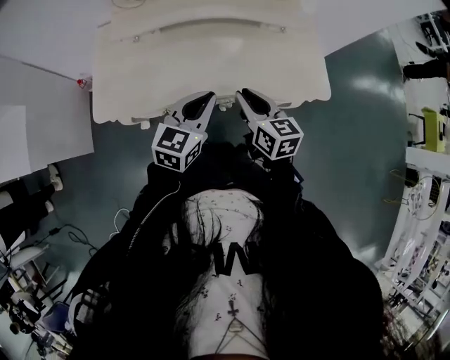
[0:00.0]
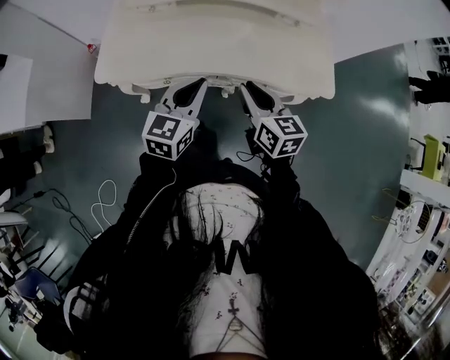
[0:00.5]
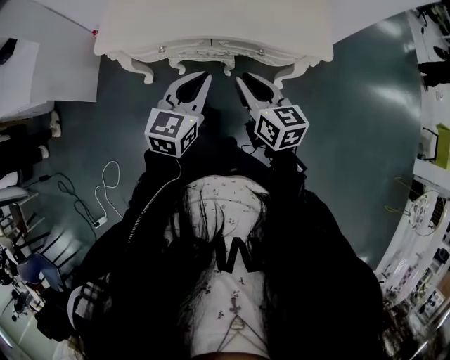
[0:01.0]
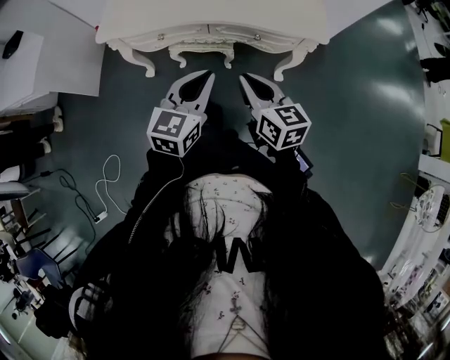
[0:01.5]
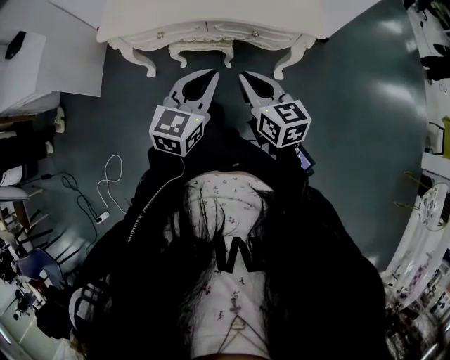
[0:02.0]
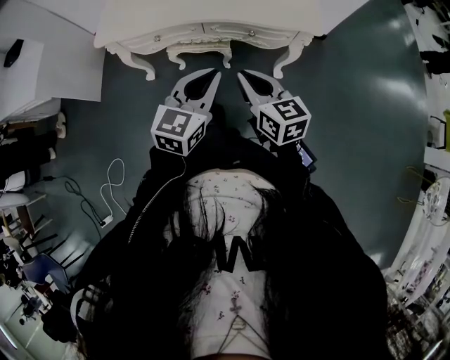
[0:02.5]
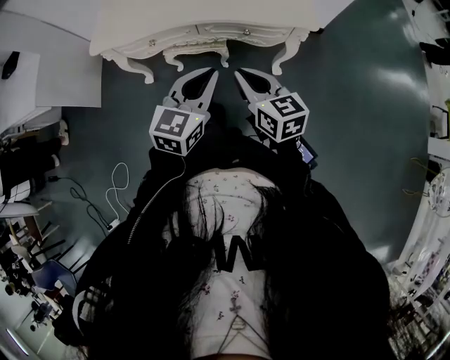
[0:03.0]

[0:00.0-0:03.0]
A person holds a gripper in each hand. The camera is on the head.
0:00.0 to 0:01.5: Both grippers move backward, approximately 25 cm.
0:01.5 to 0:03.0: The grippers move only a little.

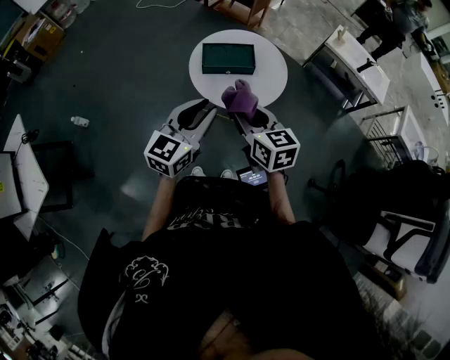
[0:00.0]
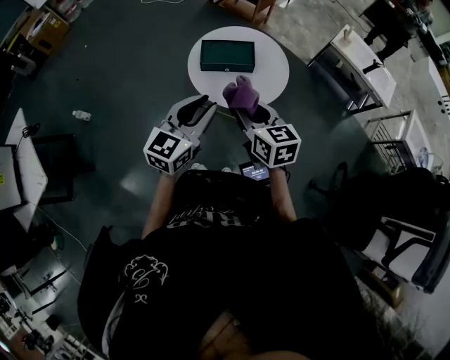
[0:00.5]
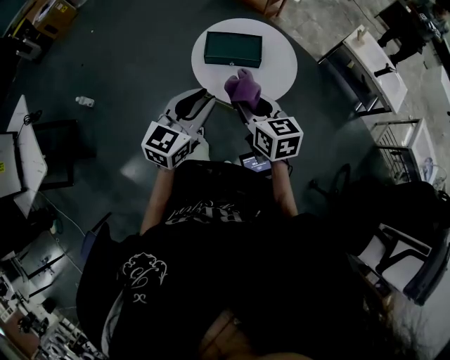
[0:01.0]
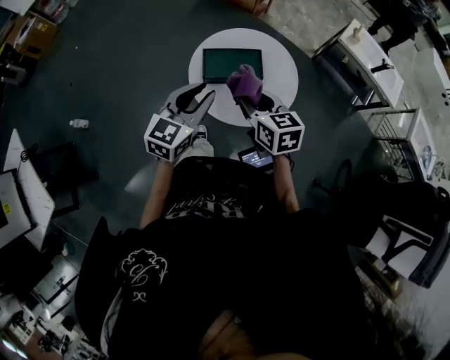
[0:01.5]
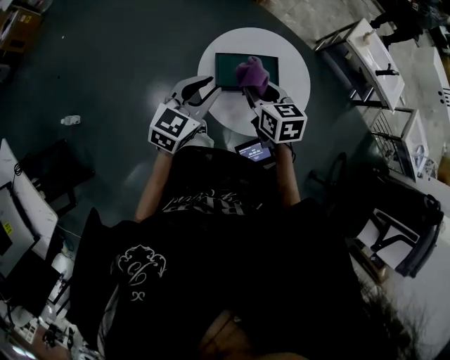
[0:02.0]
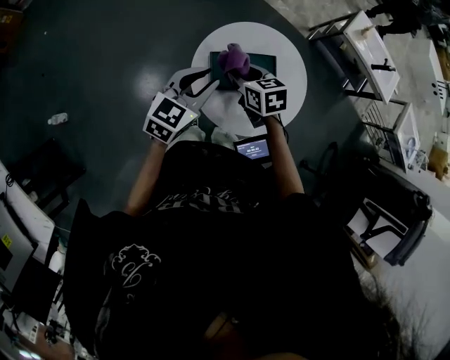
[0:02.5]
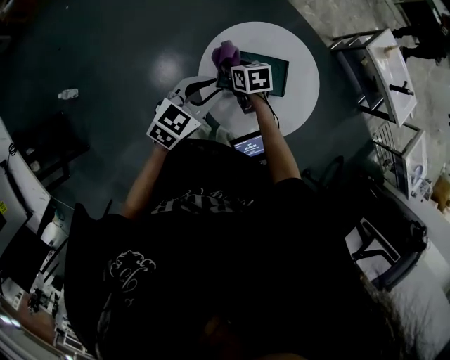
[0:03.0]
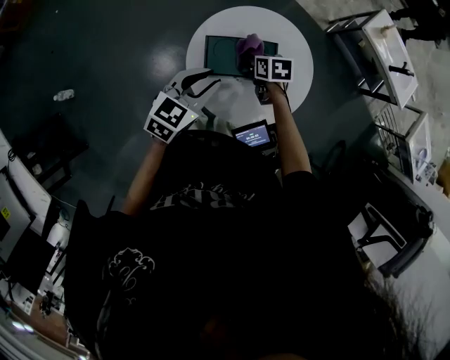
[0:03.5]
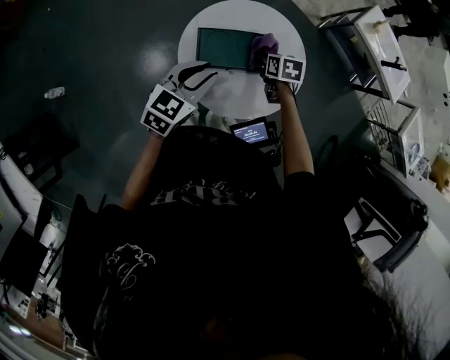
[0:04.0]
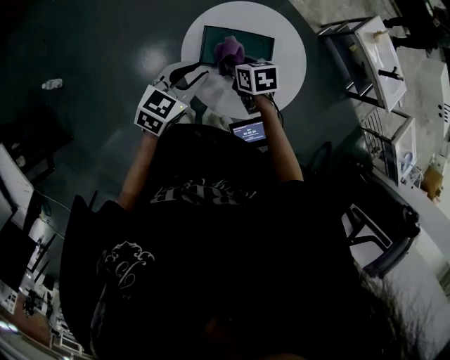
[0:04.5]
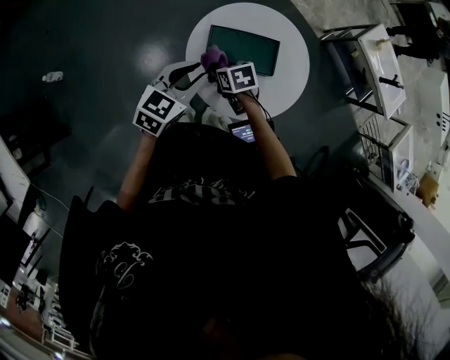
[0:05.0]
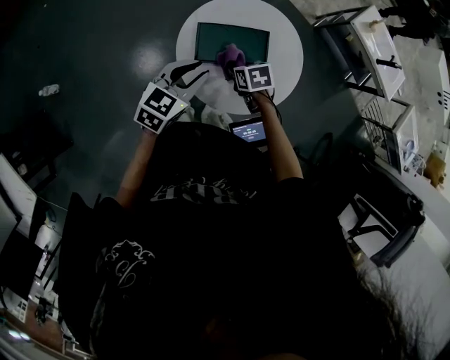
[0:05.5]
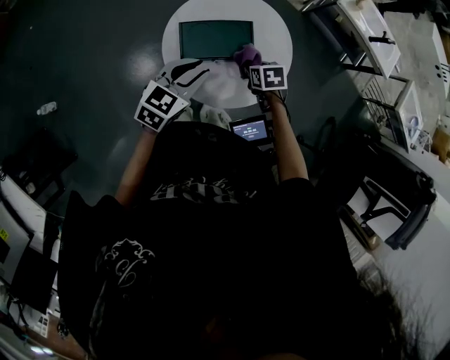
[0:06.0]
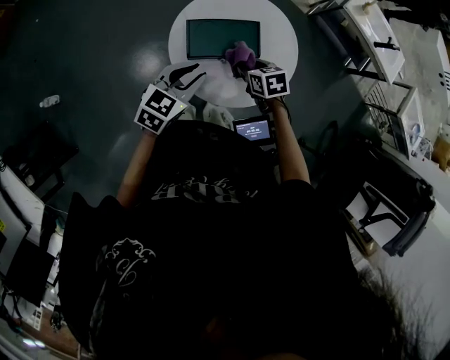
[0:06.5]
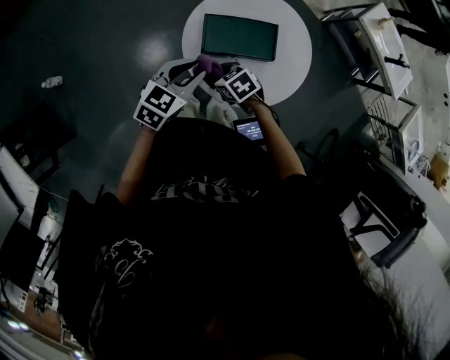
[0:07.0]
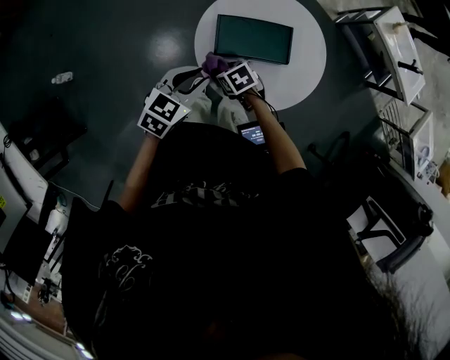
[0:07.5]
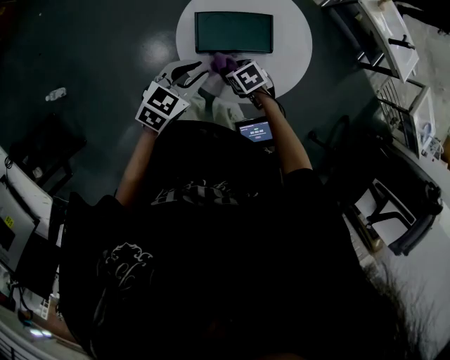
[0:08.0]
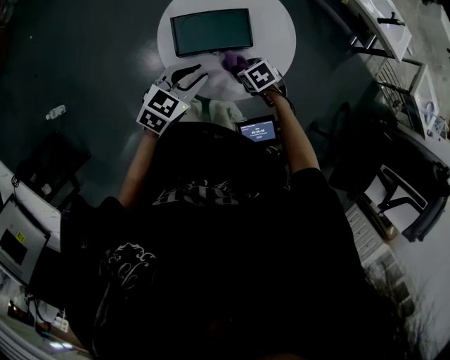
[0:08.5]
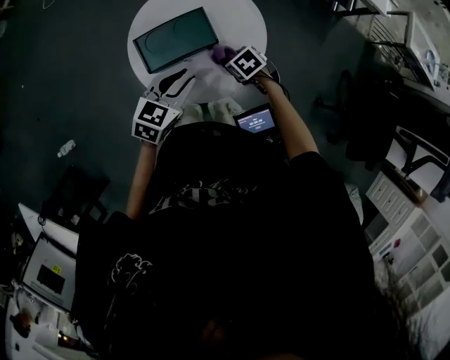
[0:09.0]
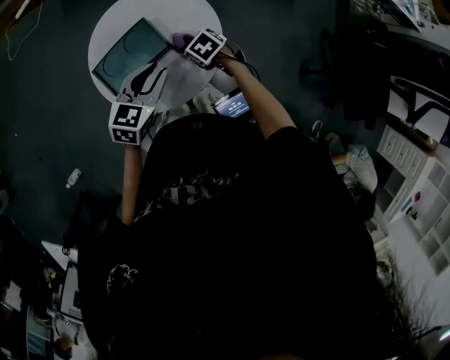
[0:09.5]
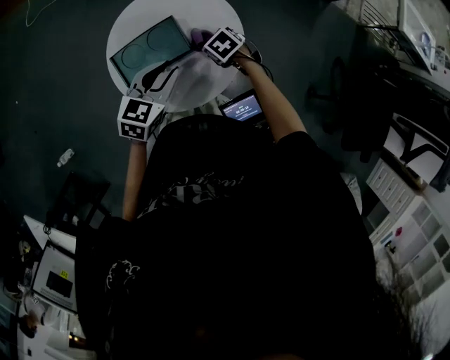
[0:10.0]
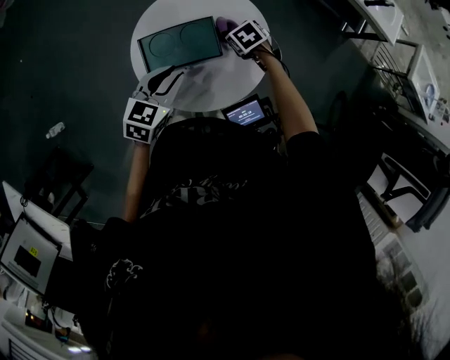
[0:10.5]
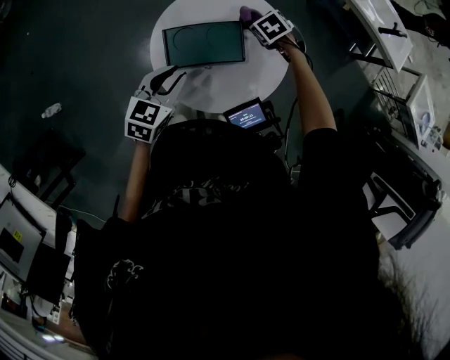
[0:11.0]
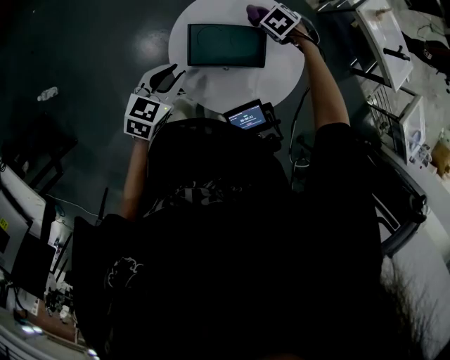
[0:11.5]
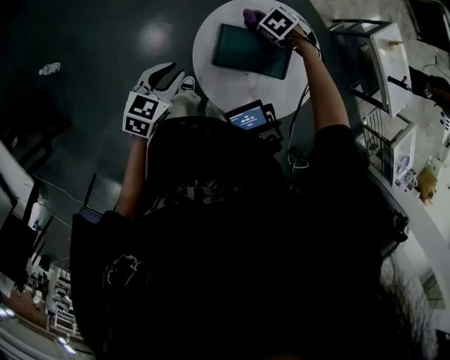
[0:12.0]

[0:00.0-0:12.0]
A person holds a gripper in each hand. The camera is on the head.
0:00.0 to 0:02.0: The grippers both shift forward by roughly 25 cm.
0:02.0 to 0:04.0: The left gripper is displaced downward and to the right by about 10 cm; the right gripper shifts some 25 cm downward, to the right and forward, and changes its angle by approximately 30 degrees.
0:04.0 to 0:06.0: The right gripper goes roughly 10 cm backward, and travels to the left and back again, approximately 15 cm each way.
0:06.0 to 0:08.0: The right gripper changes place by roughly 15 cm, and turns by some 30 degrees.
0:08.0 to 0:10.0: The right gripper heads to the right and forward, covering some 20 cm; the left gripper moves to the right, some 15 cm.
0:10.0 to 0:12.0: The left gripper shifts by approximately 25 cm, and turns by some 30 degrees, while the right gripper ends up about 25 cm from where it was, and rotates around the line of its fingers by about 40 degrees, counterclockwise from behind.

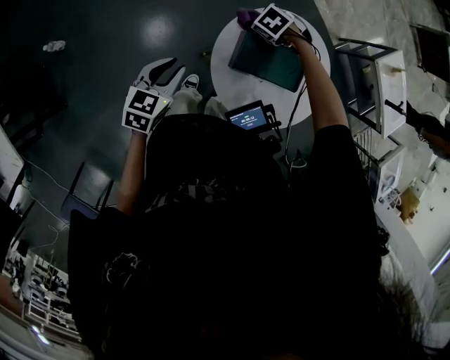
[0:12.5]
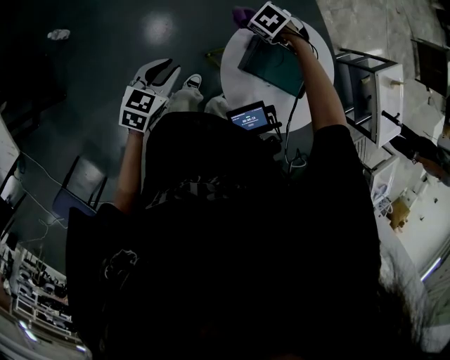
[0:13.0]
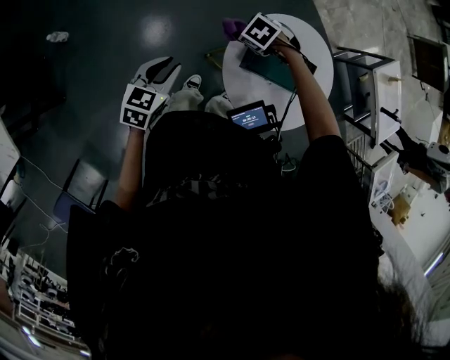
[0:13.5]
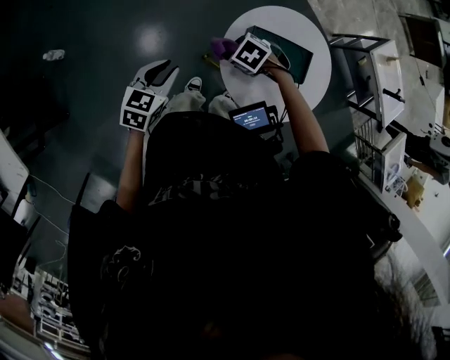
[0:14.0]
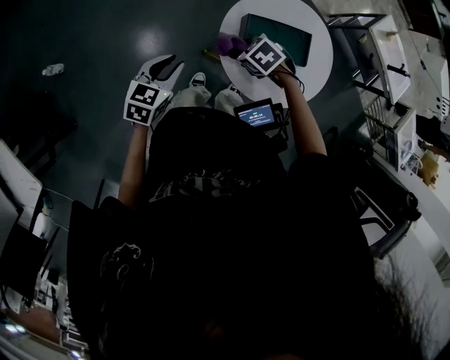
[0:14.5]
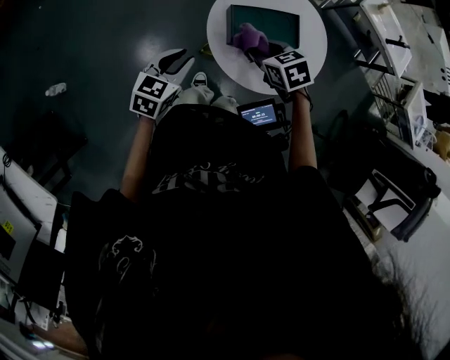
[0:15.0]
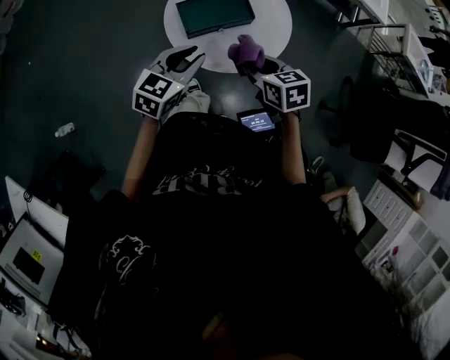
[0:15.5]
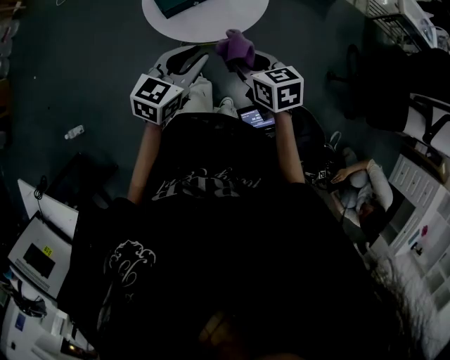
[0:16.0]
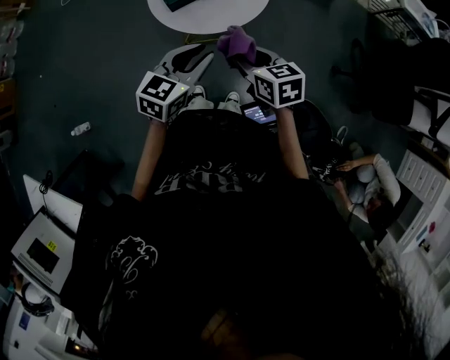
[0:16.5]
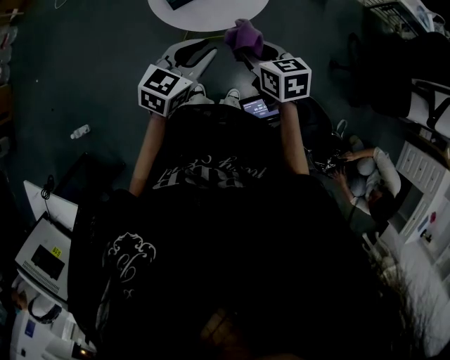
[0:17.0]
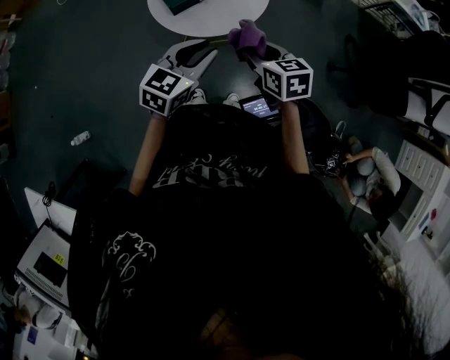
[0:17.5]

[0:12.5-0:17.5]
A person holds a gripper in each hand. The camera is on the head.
0:12.5 to 0:15.0: The left gripper swivels roughly 20 degrees. The right gripper shifts by approximately 20 cm, and rotates around the line of its fingers by about 40 degrees, clockwise from behind.
0:15.0 to 0:17.5: The right gripper changes place by roughly 30 cm, and turns by roughly 40 degrees, while the left gripper shifts by roughly 30 cm, and rotates about 30 degrees.

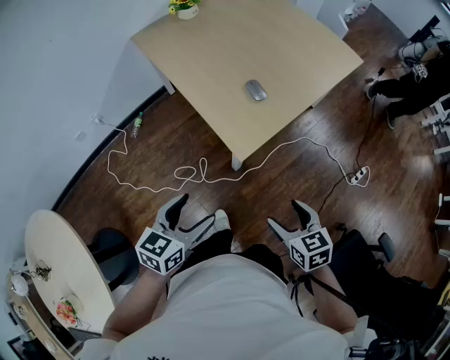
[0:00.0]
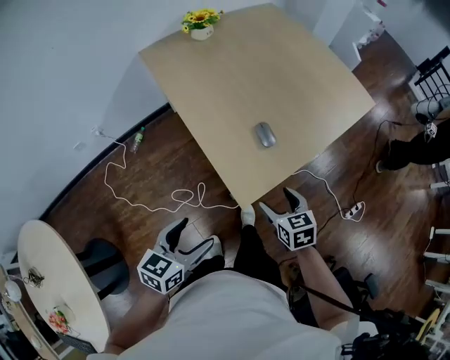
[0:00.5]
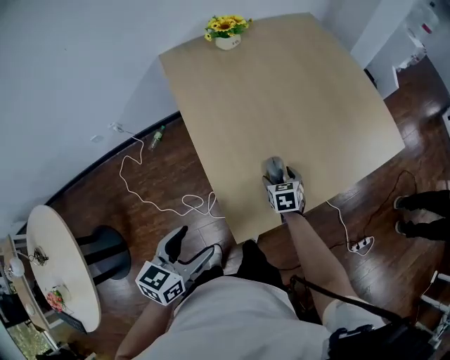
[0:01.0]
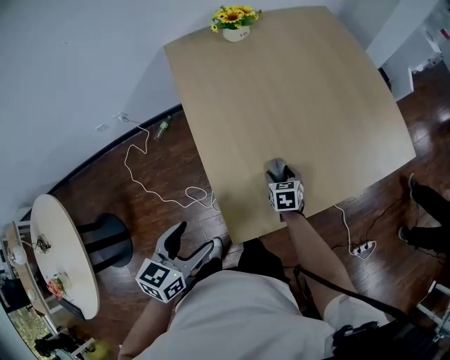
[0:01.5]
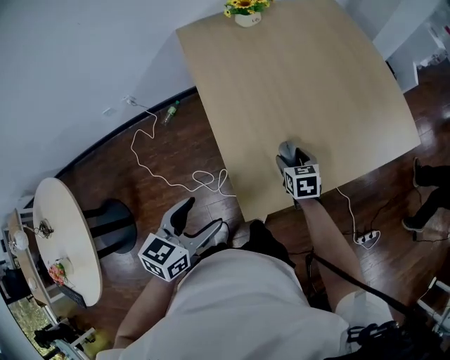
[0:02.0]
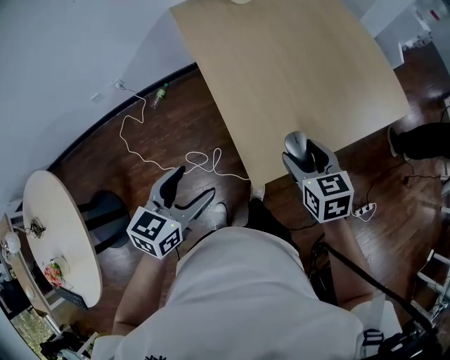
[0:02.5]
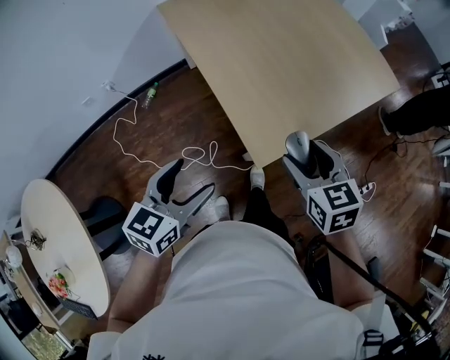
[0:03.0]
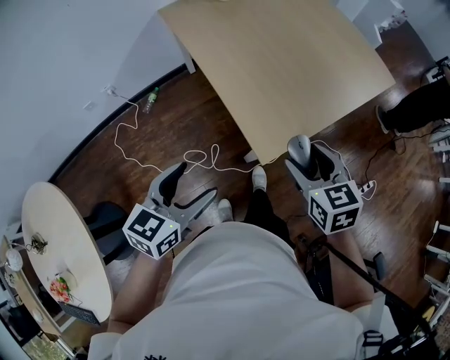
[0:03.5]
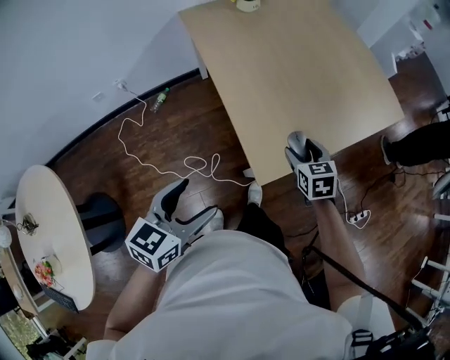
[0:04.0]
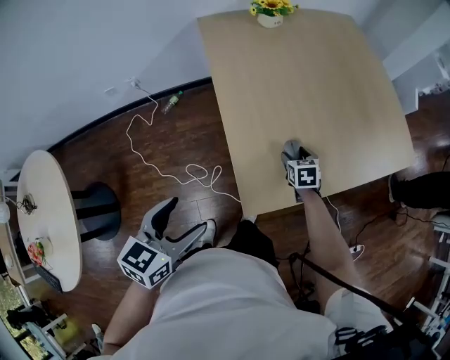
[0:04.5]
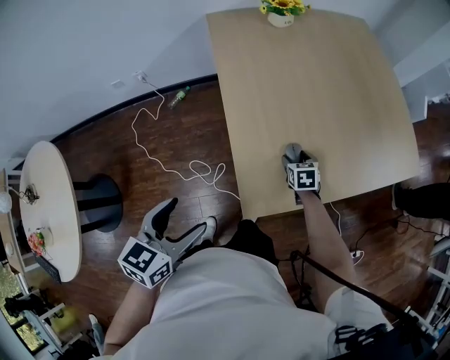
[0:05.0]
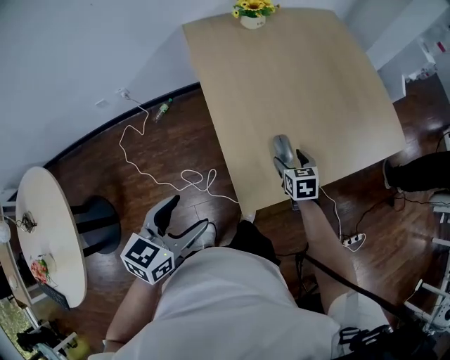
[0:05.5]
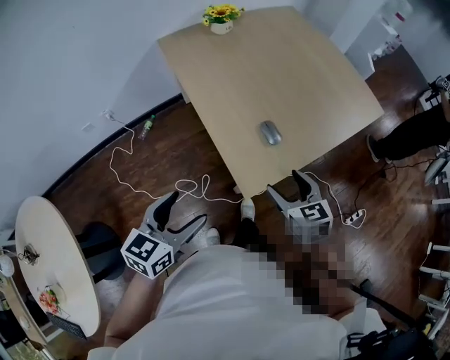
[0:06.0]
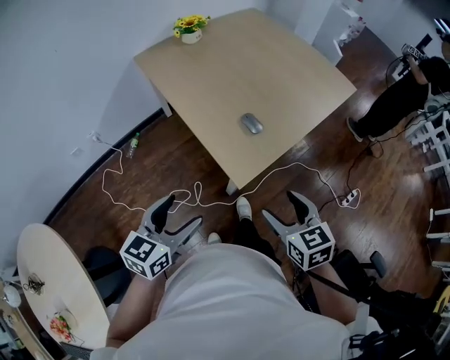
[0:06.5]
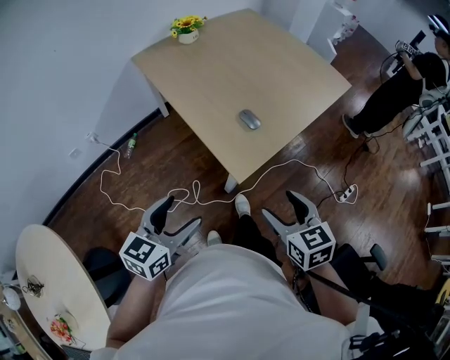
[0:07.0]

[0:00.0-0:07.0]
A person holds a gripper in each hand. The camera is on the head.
0:00.0 to 0:02.0: The left gripper shifts about 20 cm forward, and turns by approximately 20 degrees; the right gripper shifts roughly 40 cm forward.
0:02.0 to 0:03.5: The left gripper shifts about 15 cm backward and to the left, while the right gripper travels backward and upward by some 30 cm.
0:03.5 to 0:05.0: The right gripper travels downward and forward by about 35 cm, while the left gripper shifts about 5 cm forward, and changes its angle by roughly 20 degrees.
0:05.0 to 0:07.0: The left gripper travels backward by approximately 10 cm, and changes its angle by some 30 degrees. The right gripper heads backward and upward, covering approximately 50 cm, and turns by about 30 degrees.
